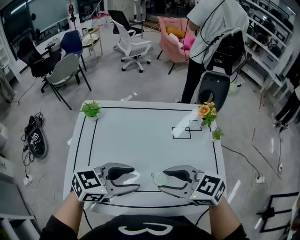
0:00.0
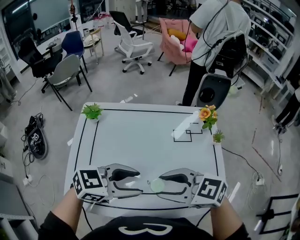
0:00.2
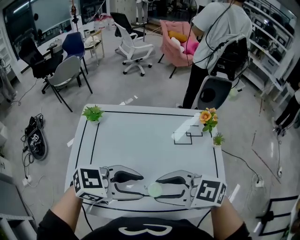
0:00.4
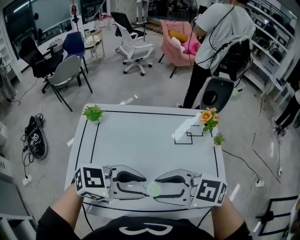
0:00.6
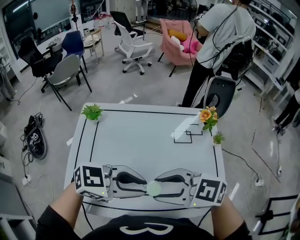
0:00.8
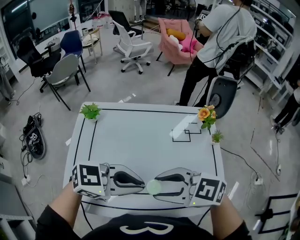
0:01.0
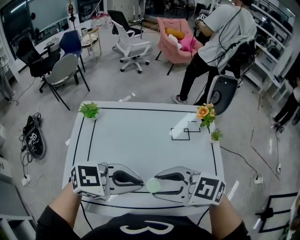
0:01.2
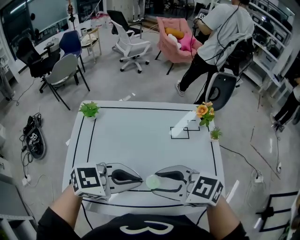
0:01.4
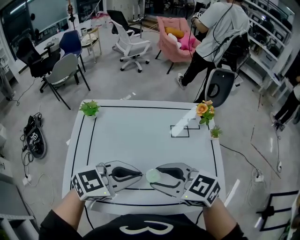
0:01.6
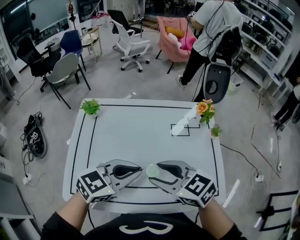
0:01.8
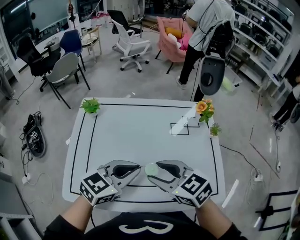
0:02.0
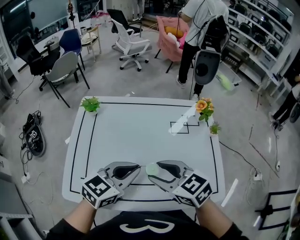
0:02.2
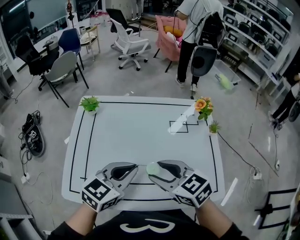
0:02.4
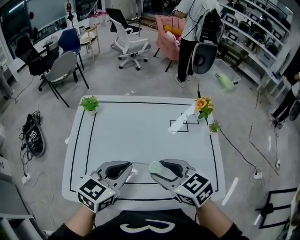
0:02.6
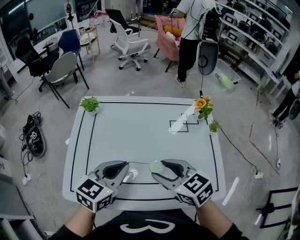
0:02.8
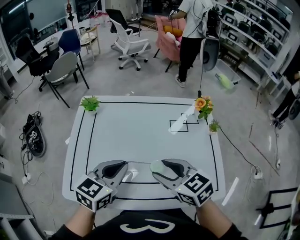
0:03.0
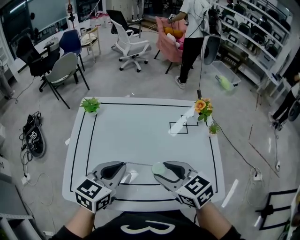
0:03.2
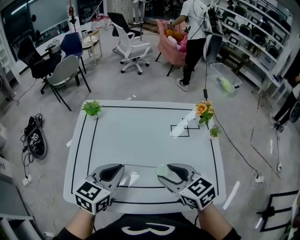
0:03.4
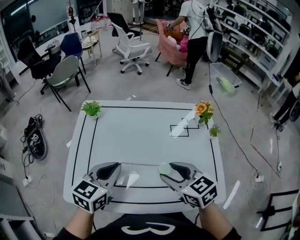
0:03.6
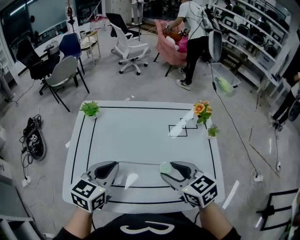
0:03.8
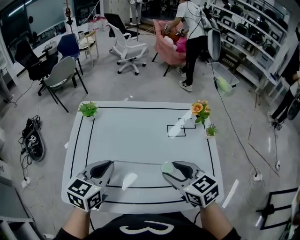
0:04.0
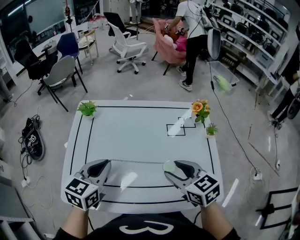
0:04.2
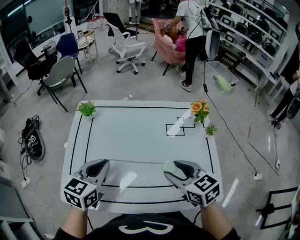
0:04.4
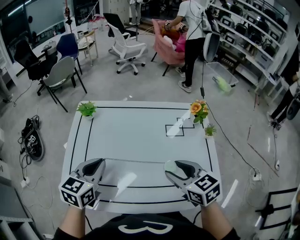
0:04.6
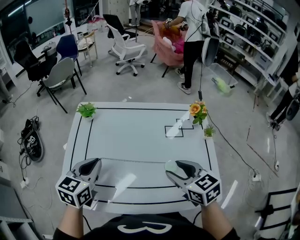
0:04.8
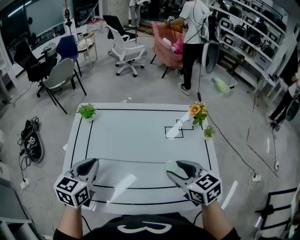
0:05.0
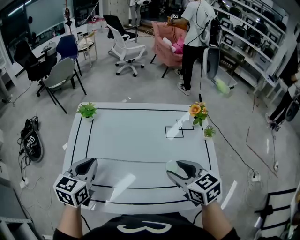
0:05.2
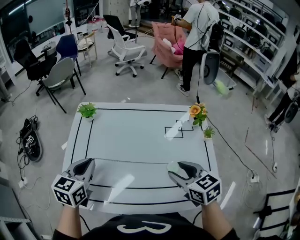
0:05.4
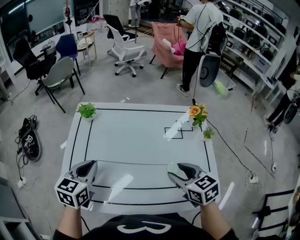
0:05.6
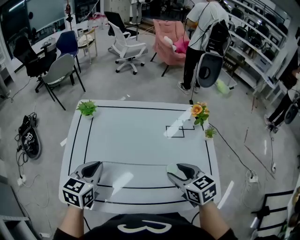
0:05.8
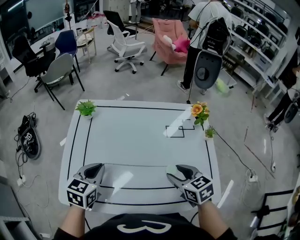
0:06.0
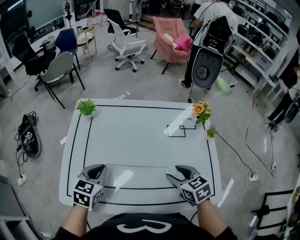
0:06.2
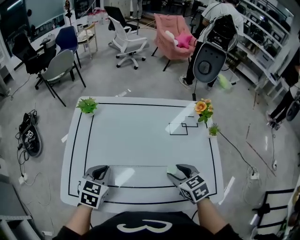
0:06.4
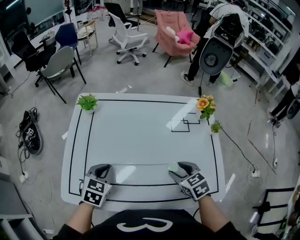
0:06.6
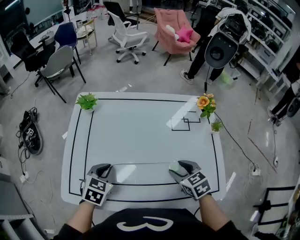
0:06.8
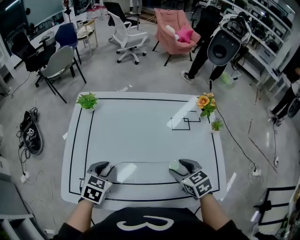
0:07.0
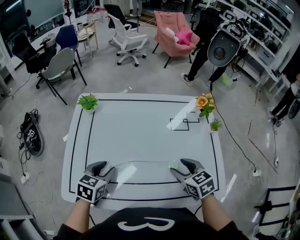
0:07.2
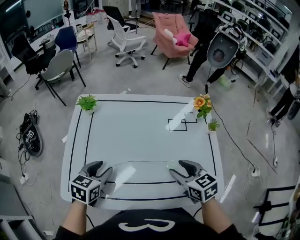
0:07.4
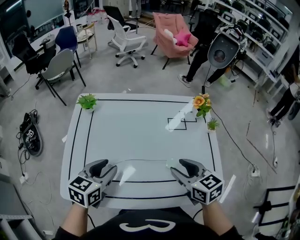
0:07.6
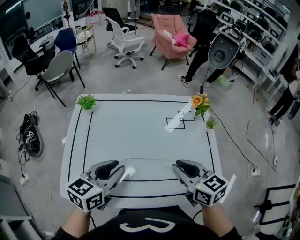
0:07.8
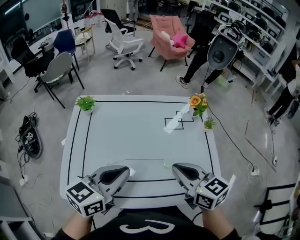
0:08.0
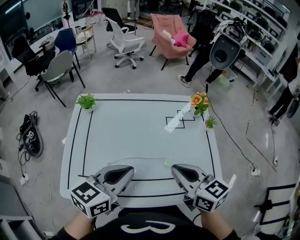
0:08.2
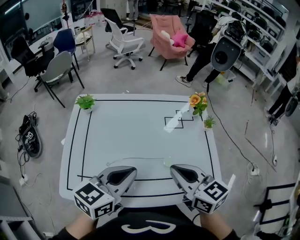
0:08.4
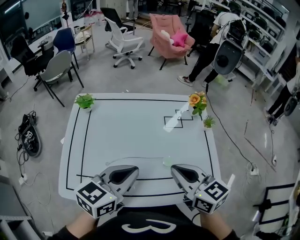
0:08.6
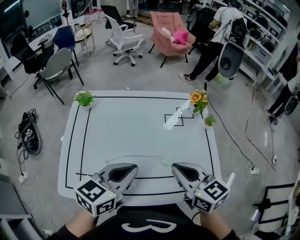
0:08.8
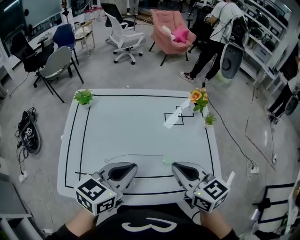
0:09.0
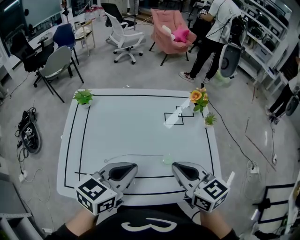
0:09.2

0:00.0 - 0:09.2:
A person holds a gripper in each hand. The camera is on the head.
0:00.0 - 0:01.6: The left gripper closes its fingers.
0:01.6 - 0:03.0: The left gripper moves approximately 5 cm, and rotates about 40 degrees.
0:03.0 - 0:04.6: The left gripper moves to the left, about 5 cm. Meanwhile the right gripper heads to the right, covering about 5 cm.
0:04.6 - 0:06.2: The grippers both shift downward by some 10 cm.
0:06.2 - 0:07.6: The right gripper is displaced upward by about 5 cm. Meanwhile the left gripper shifts by approximately 5 cm, and opens its fingers.
0:07.6 - 0:09.2: The left gripper heads to the right and upward, covering about 15 cm, and closes. Meanwhile the right gripper is displaced upward by some 5 cm, and closes.

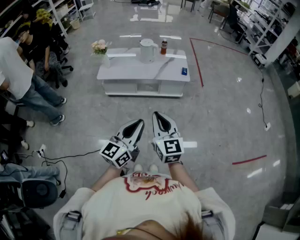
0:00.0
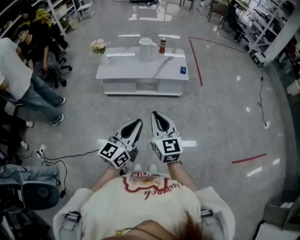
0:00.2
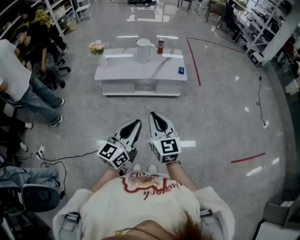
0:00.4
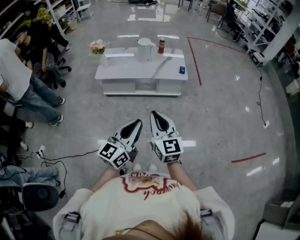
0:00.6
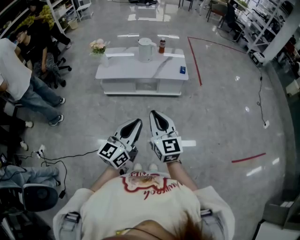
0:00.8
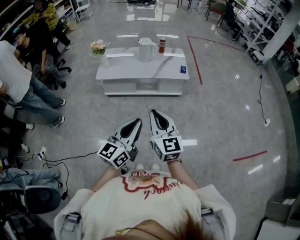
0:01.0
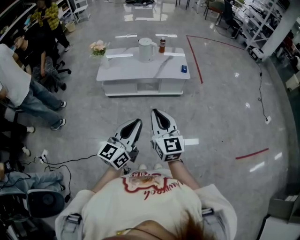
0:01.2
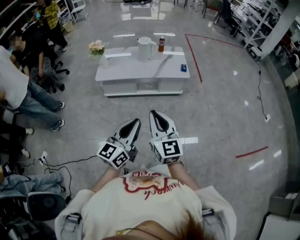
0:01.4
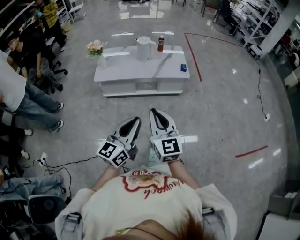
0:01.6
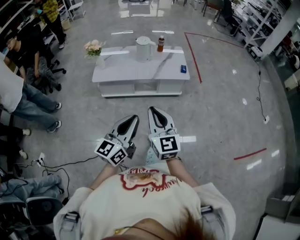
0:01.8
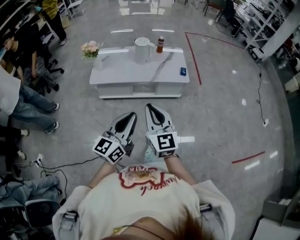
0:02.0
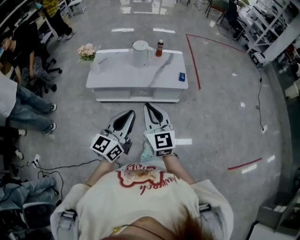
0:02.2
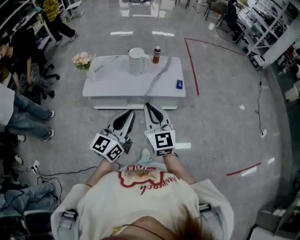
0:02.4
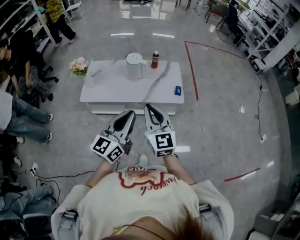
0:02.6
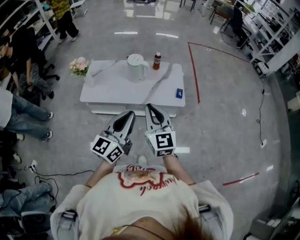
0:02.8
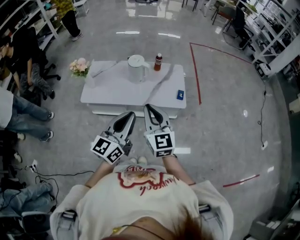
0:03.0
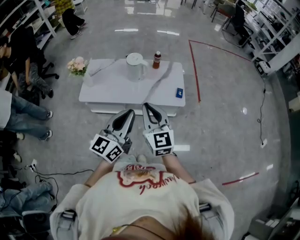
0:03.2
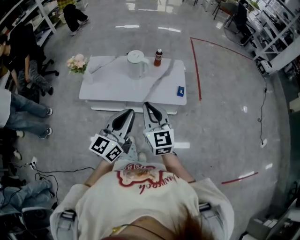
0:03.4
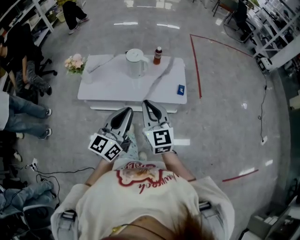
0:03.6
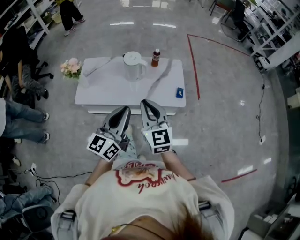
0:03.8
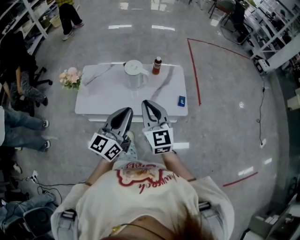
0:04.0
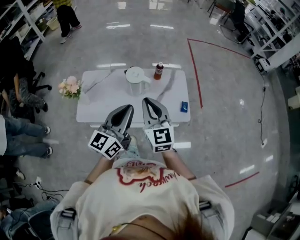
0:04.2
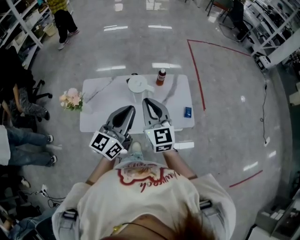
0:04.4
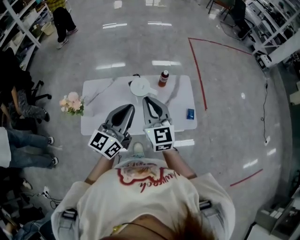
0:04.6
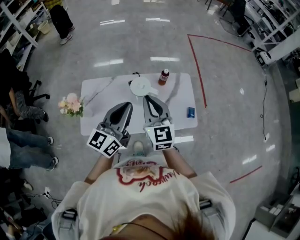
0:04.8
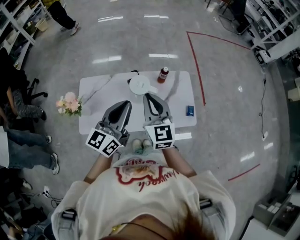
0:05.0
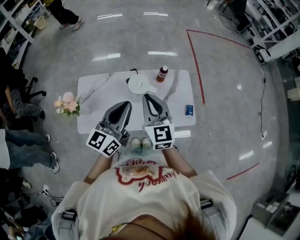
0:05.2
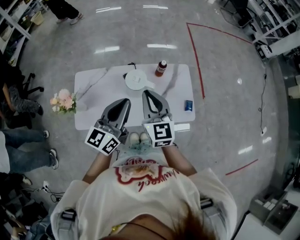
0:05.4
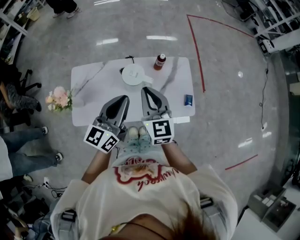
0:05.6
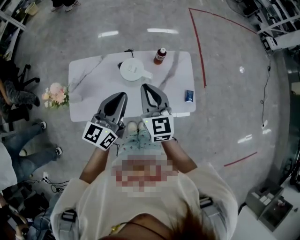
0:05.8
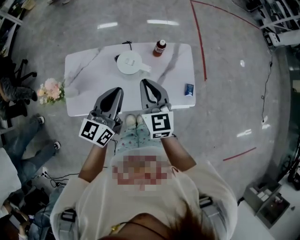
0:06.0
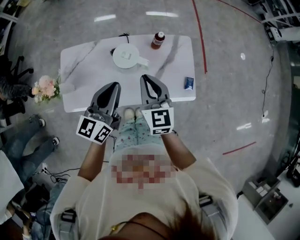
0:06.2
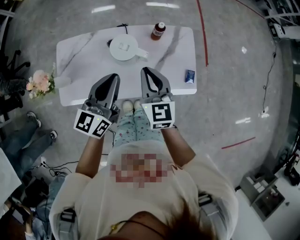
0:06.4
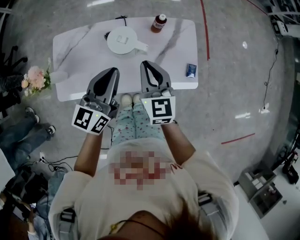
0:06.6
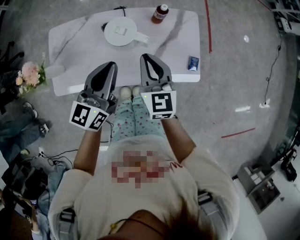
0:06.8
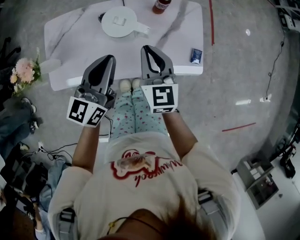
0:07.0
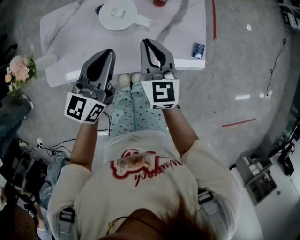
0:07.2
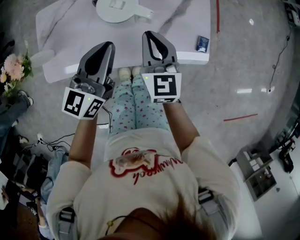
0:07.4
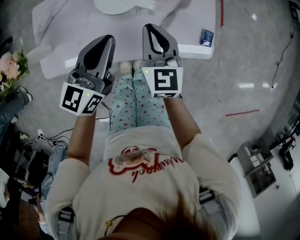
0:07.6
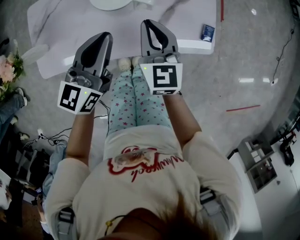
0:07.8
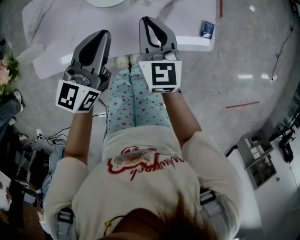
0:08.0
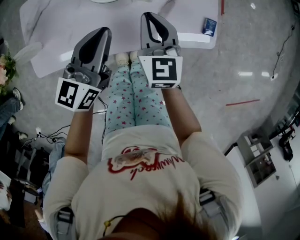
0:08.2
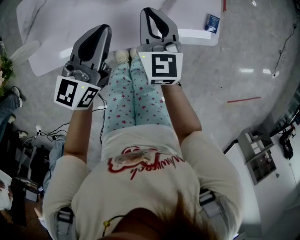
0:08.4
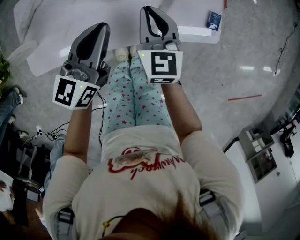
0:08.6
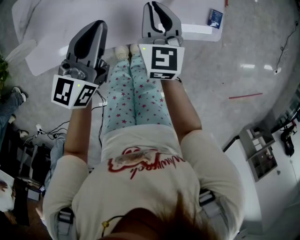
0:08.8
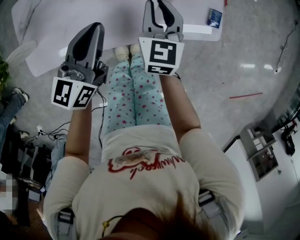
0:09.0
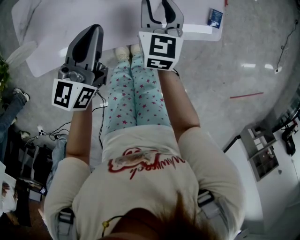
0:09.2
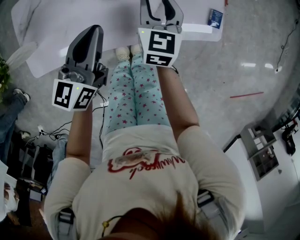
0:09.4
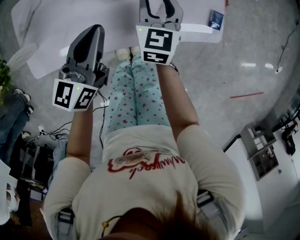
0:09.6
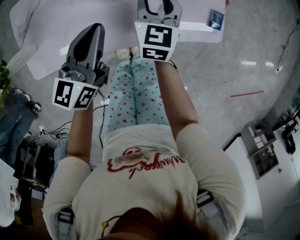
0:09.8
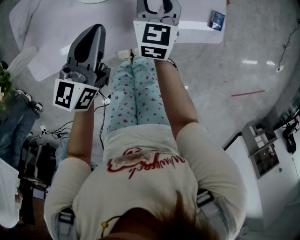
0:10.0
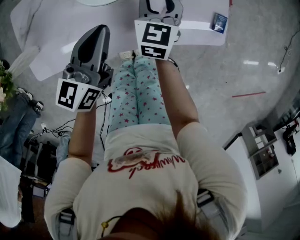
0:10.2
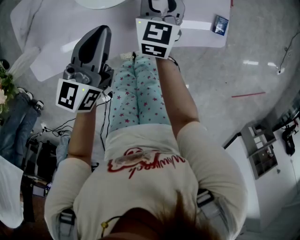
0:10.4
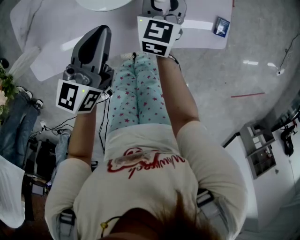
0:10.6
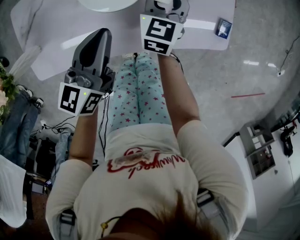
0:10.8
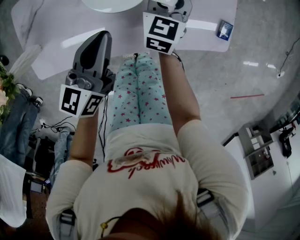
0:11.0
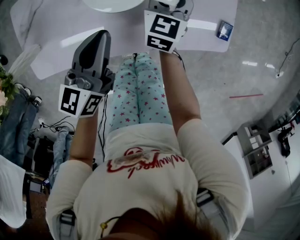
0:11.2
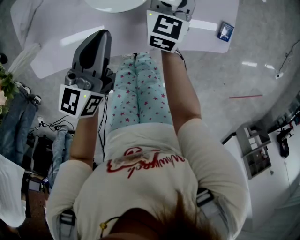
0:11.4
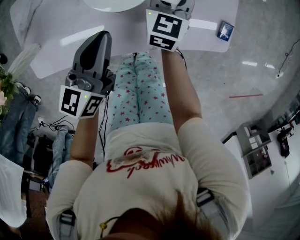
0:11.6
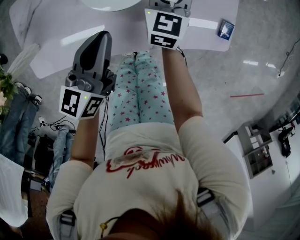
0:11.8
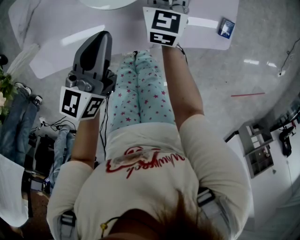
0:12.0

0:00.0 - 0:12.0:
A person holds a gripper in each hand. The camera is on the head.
0:00.0 - 0:01.6: The two grippers go roughly 5 cm to the left.
0:01.6 - 0:03.0: Both grippers move forward, about 35 cm.
0:03.0 - 0:04.4: Both grippers move forward, roughly 30 cm.
0:04.4 - 0:06.0: Both grippers move forward and downward, about 15 cm.
0:06.0 - 0:07.6: The grippers both shift downward by roughly 20 cm.
0:07.6 - 0:09.0: Both grippers move downward, roughly 10 cm.
0:09.0 - 0:10.4: The right gripper moves forward, roughly 10 cm, and opens.
0:10.4 - 0:12.0: The right gripper closes its fingers.

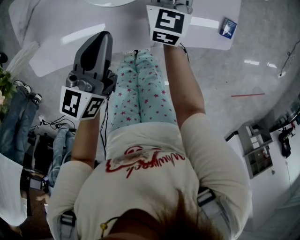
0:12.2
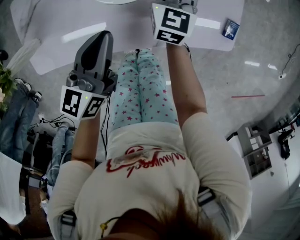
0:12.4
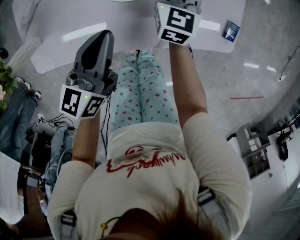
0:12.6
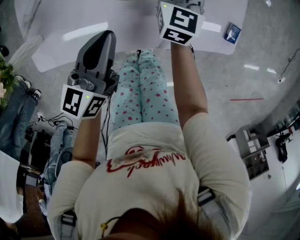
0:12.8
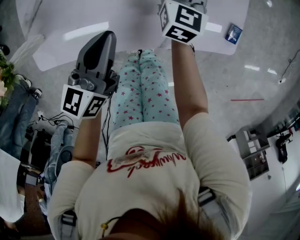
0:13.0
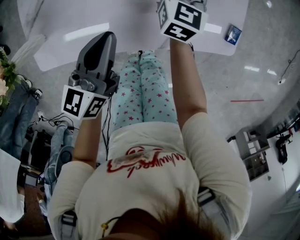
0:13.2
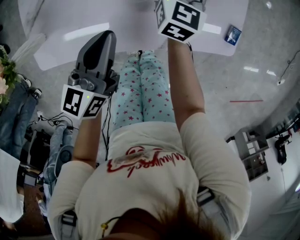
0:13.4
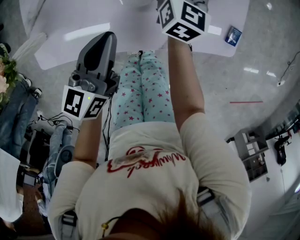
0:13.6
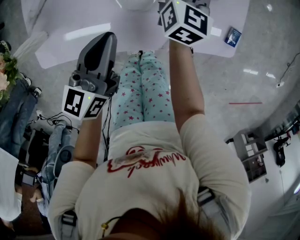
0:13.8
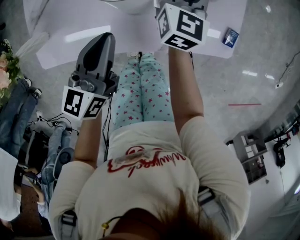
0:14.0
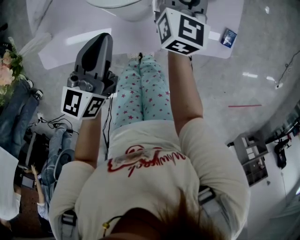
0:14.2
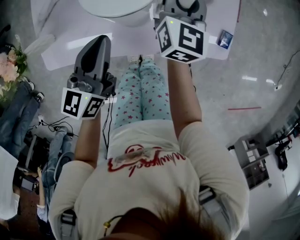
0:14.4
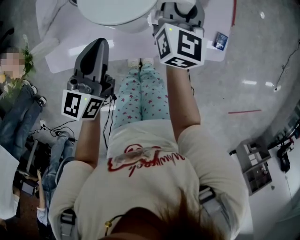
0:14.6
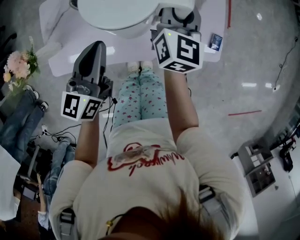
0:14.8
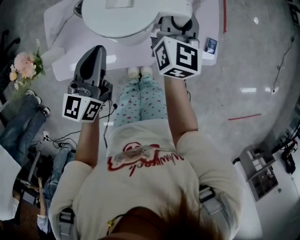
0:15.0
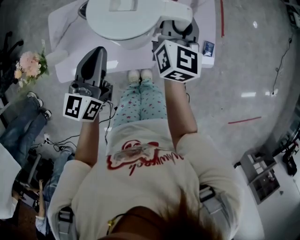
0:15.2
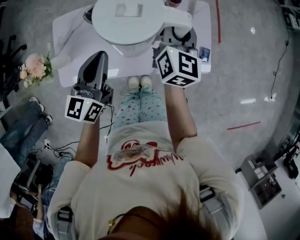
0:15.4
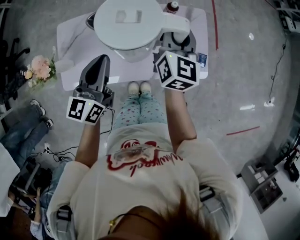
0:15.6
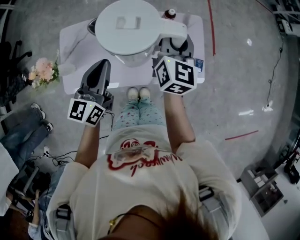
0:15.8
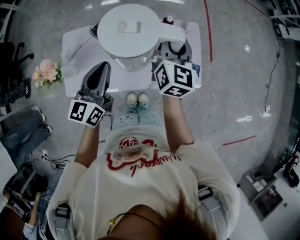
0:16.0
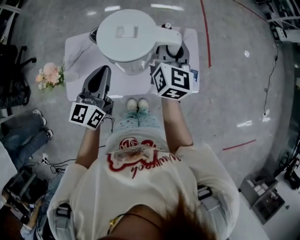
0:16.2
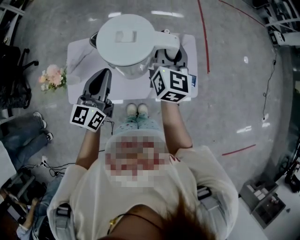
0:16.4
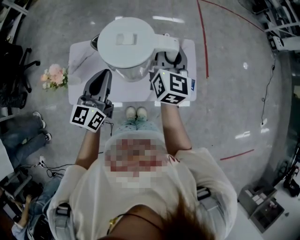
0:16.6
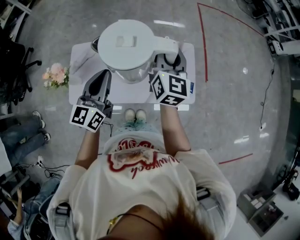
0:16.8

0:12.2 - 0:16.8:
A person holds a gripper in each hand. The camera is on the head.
0:12.2 - 0:13.8: The grippers stay close to where they were, moving slightly.
0:13.8 - 0:15.2: The left gripper travels upward and to the left by roughly 20 cm; the right gripper goes some 25 cm upward and backward.
0:15.2 - 0:16.8: Both grippers travel together upward, some 15 cm.
